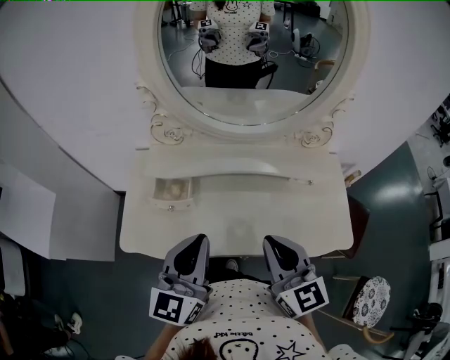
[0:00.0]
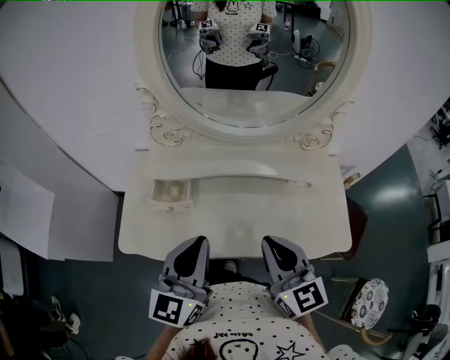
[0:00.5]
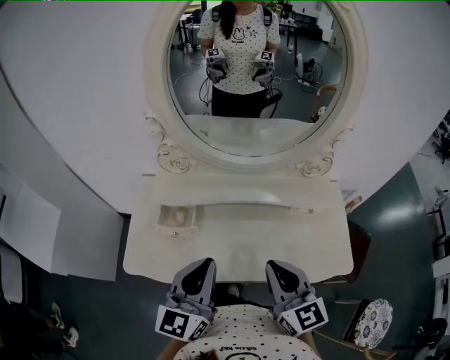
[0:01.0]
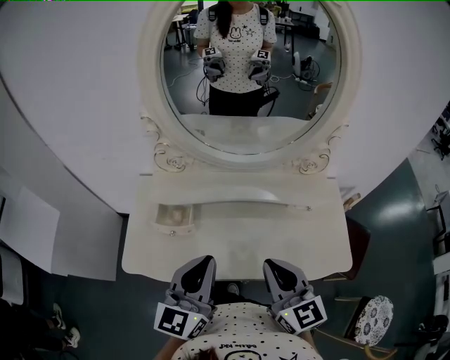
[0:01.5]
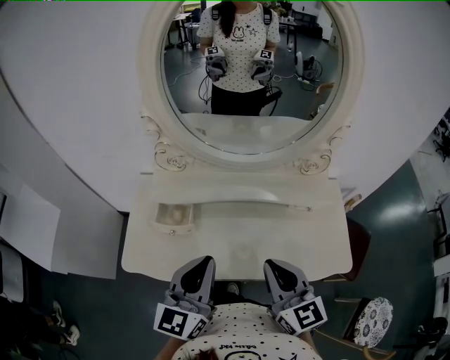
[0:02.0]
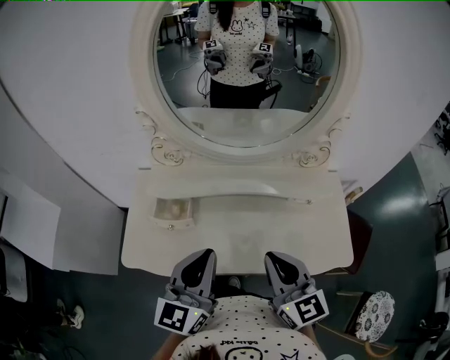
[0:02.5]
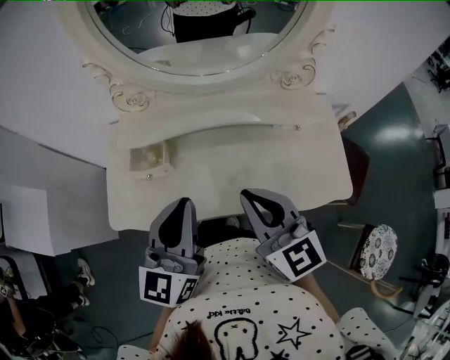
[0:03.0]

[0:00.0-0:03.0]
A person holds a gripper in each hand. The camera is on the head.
0:00.0 to 0:03.0: There are only small adjustments of the grippers.

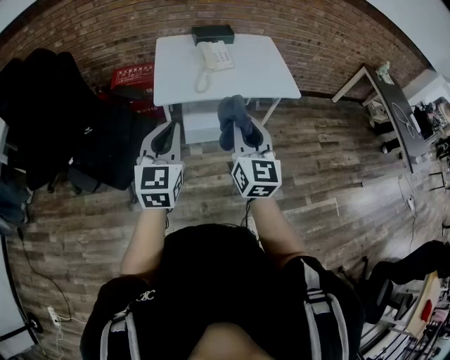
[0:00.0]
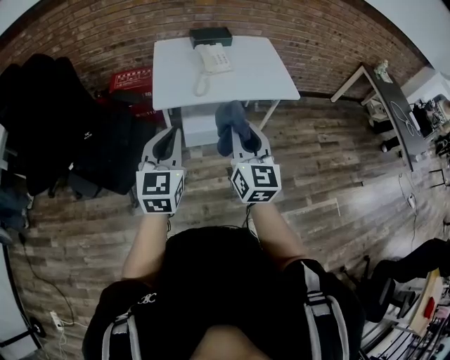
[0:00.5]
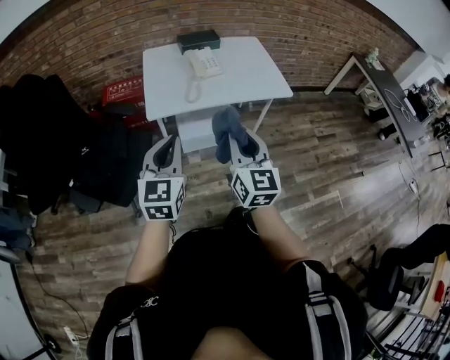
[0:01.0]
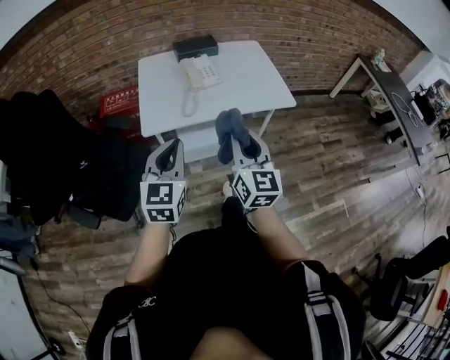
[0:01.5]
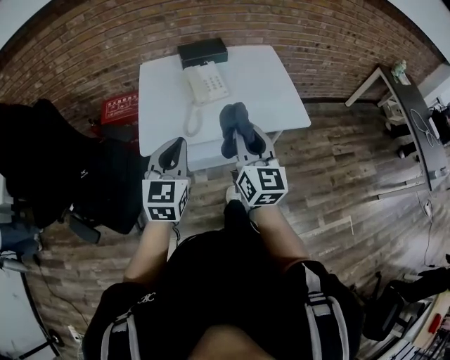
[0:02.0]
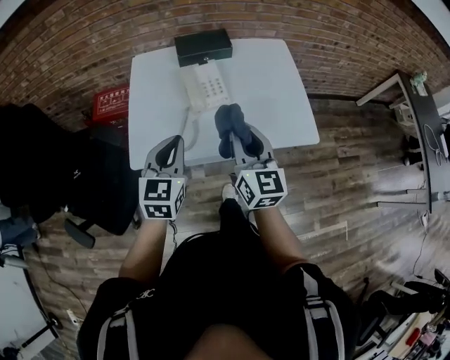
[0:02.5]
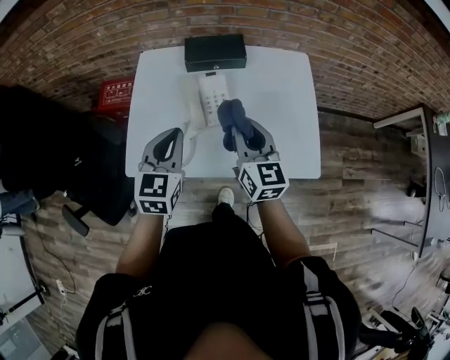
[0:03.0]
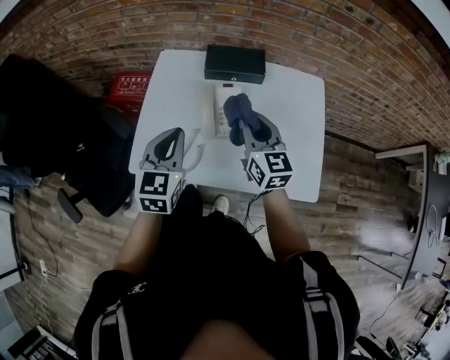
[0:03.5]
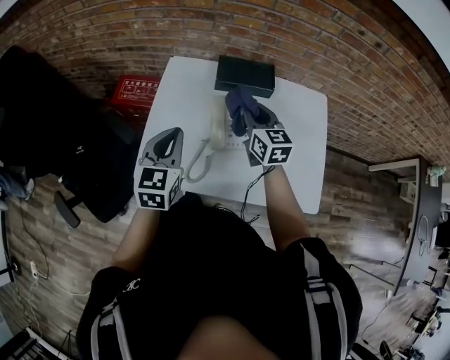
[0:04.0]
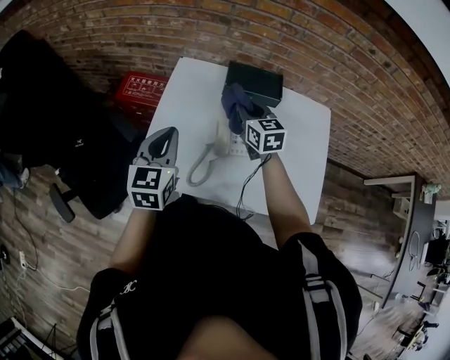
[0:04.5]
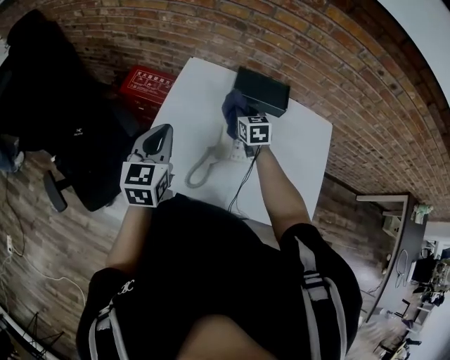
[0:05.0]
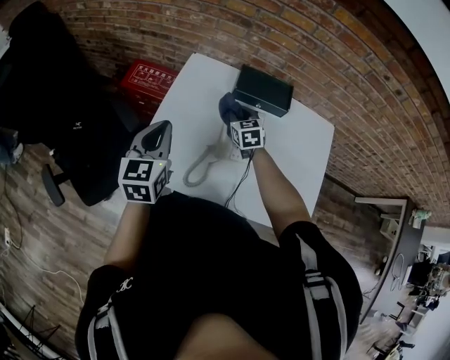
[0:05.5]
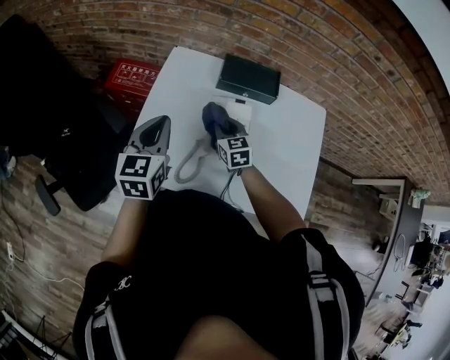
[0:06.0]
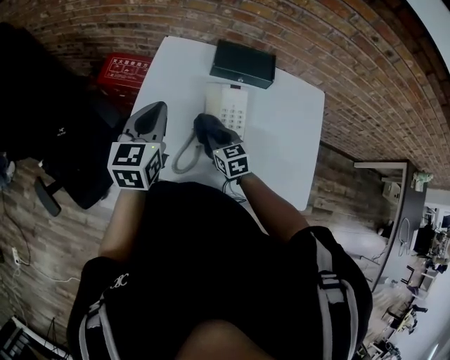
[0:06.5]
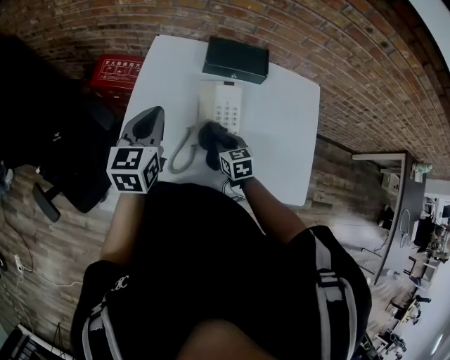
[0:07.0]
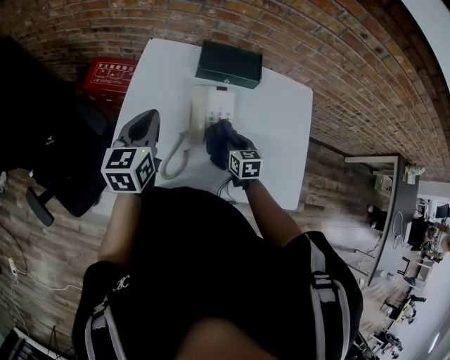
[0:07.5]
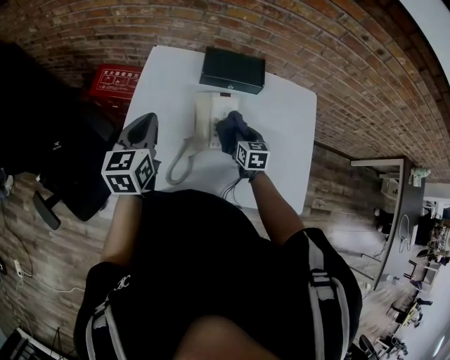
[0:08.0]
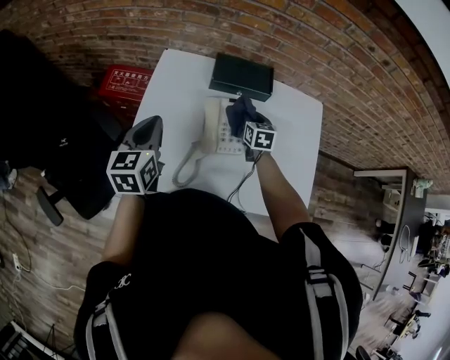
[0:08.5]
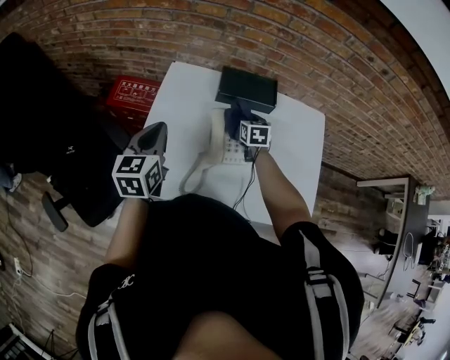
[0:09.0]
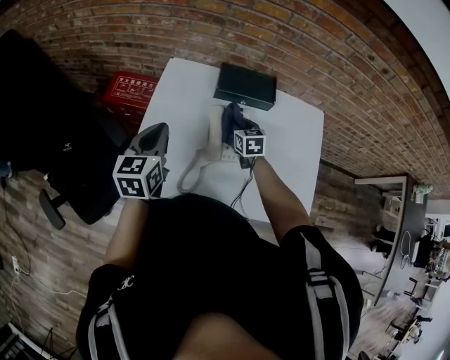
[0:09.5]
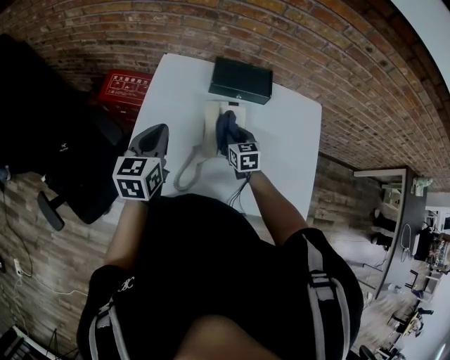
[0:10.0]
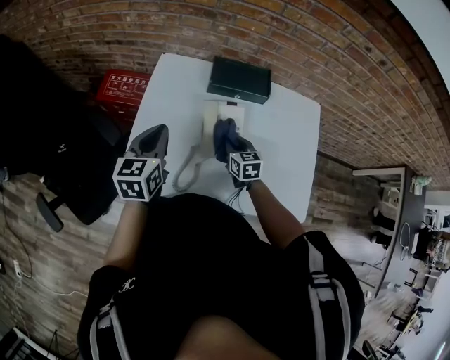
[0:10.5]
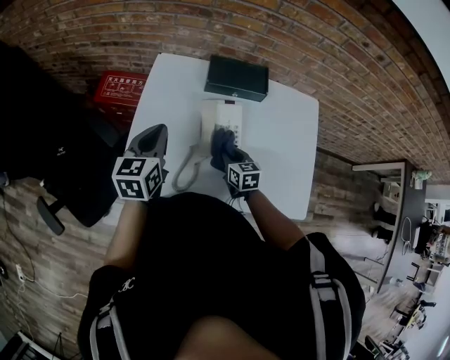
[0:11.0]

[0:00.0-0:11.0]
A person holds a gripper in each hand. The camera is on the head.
0:00.0 to 0:02.0: Both grippers travel together forward, some 25 cm.
0:02.0 to 0:03.5: Both grippers travel together forward, approximately 30 cm. The right gripper rotates roughly 30 degrees.
0:03.5 to 0:05.5: The left gripper is displaced to the left and forward by about 15 cm. The right gripper goes approximately 25 cm forward, downward and to the left, and rotates approximately 30 degrees.
0:05.5 to 0:07.5: The left gripper is displaced to the right by approximately 5 cm; the right gripper goes roughly 20 cm backward, to the right and downward, and turns by some 20 degrees.
0:07.5 to 0:09.0: The right gripper shifts some 15 cm forward.
0:09.0 to 0:11.0: The right gripper shifts about 15 cm backward.

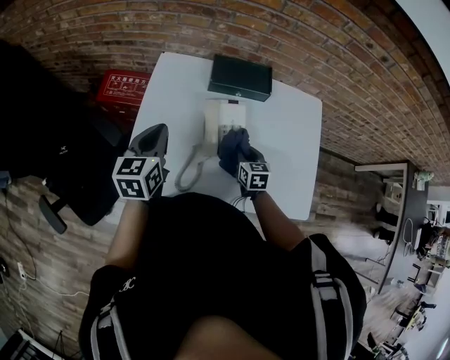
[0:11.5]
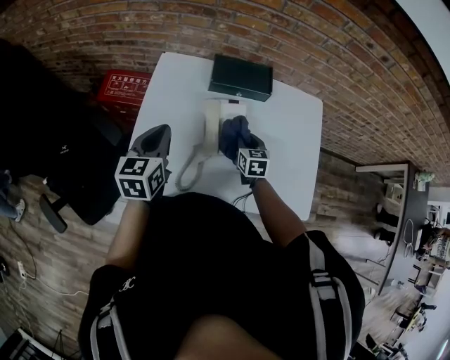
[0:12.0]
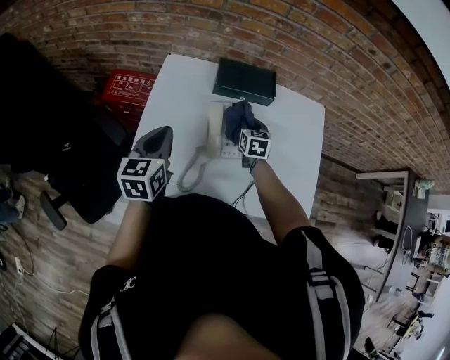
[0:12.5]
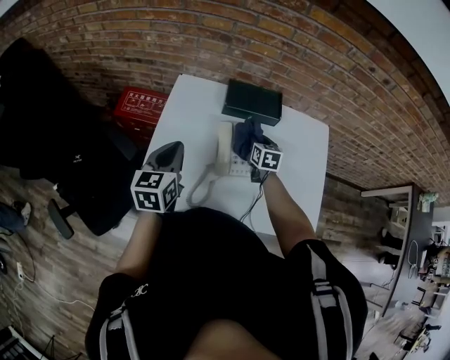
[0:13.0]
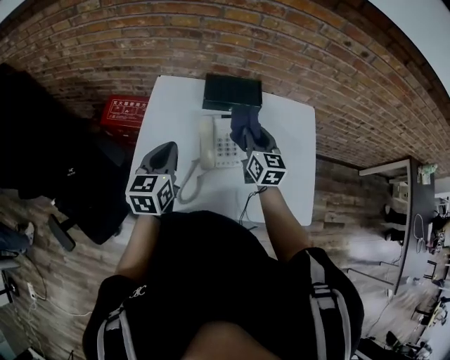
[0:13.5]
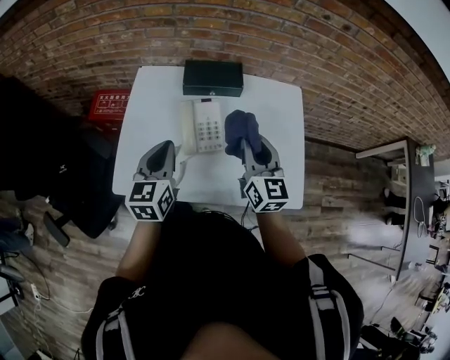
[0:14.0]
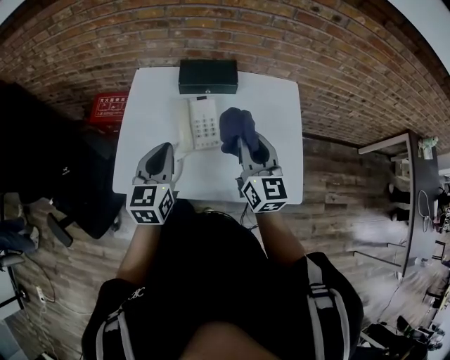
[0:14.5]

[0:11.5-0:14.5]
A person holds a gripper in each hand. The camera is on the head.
0:11.5 to 0:13.0: The right gripper moves forward, roughly 10 cm.
0:13.0 to 0:14.5: The right gripper travels upward and backward by about 30 cm, and tilts its fingers approximately 30 degrees upward; the left gripper is displaced to the right and backward by roughly 15 cm.

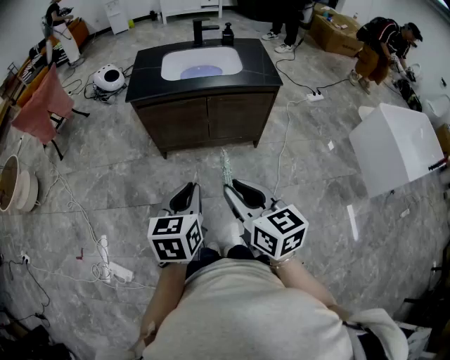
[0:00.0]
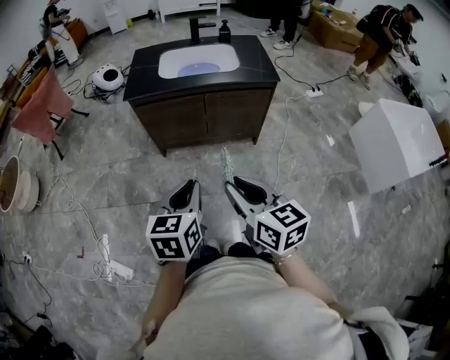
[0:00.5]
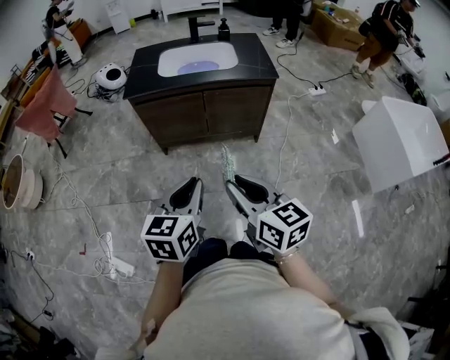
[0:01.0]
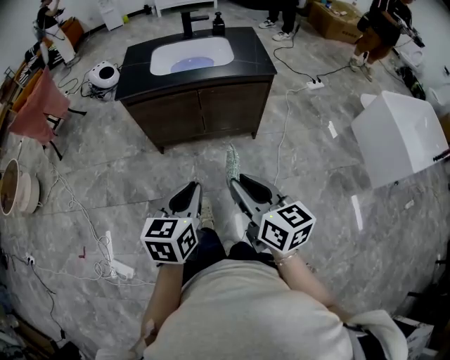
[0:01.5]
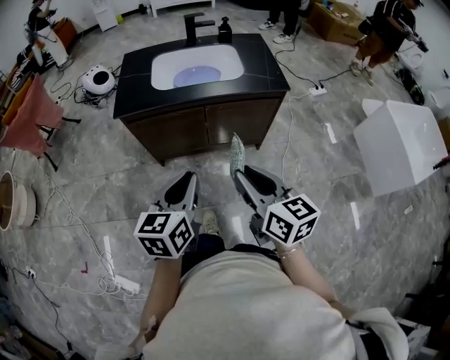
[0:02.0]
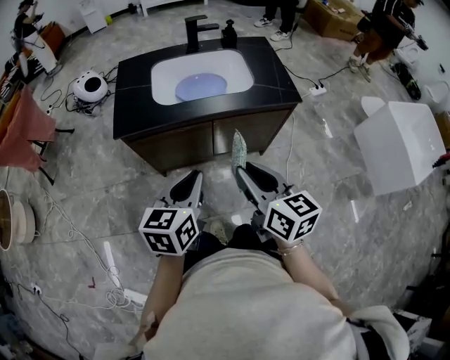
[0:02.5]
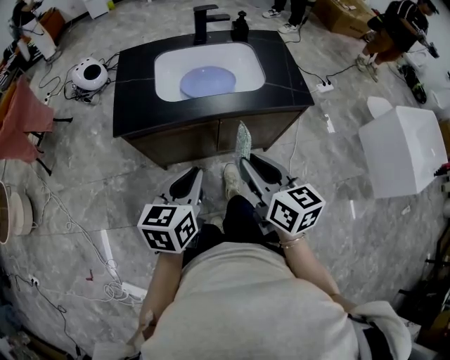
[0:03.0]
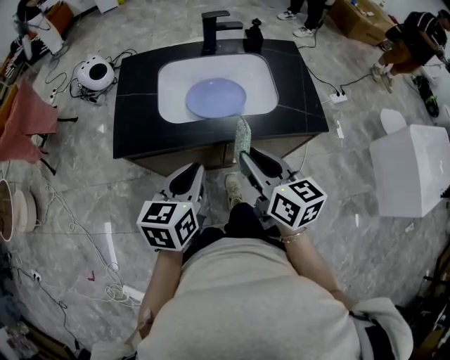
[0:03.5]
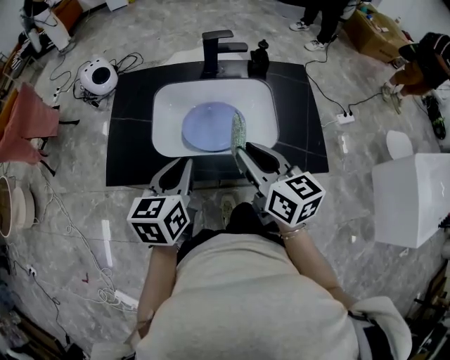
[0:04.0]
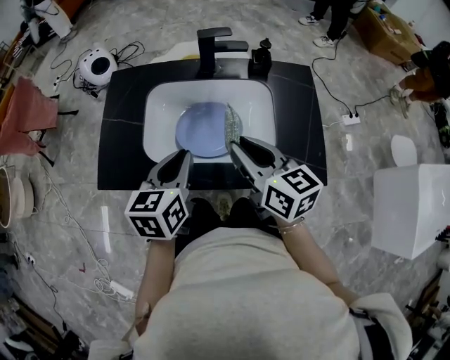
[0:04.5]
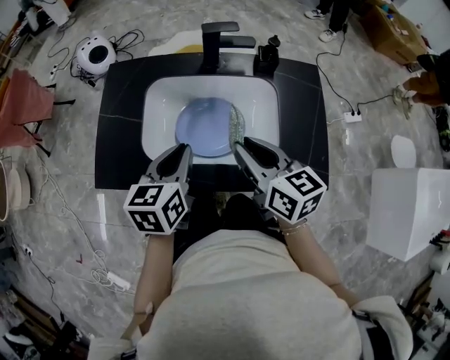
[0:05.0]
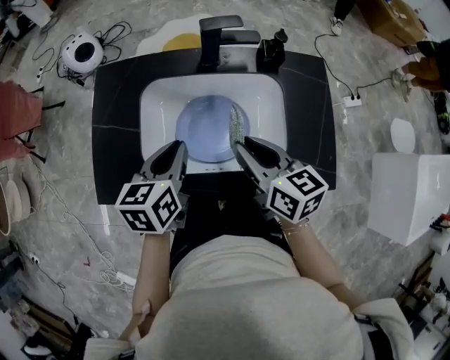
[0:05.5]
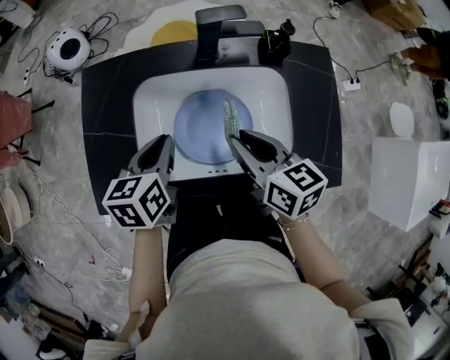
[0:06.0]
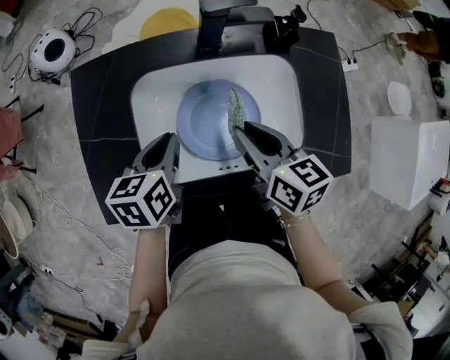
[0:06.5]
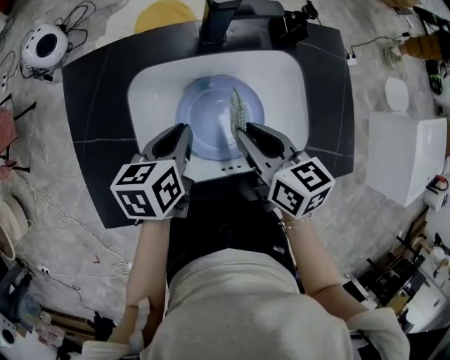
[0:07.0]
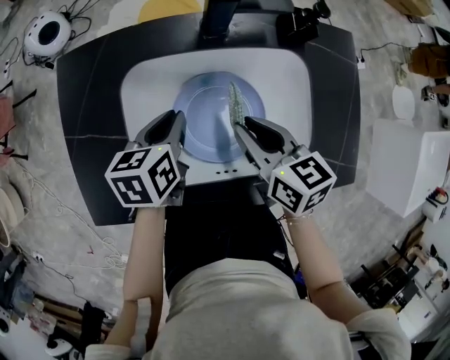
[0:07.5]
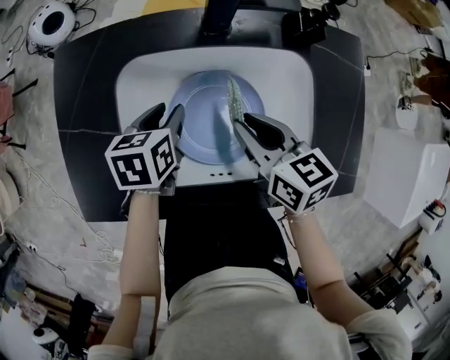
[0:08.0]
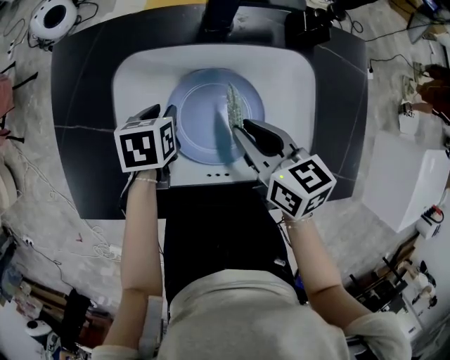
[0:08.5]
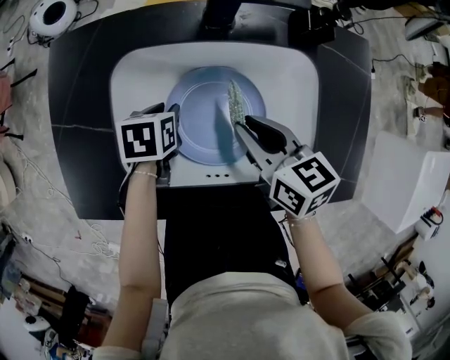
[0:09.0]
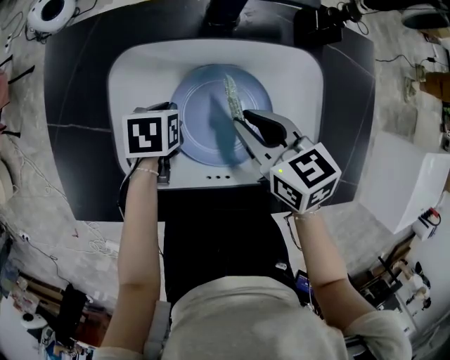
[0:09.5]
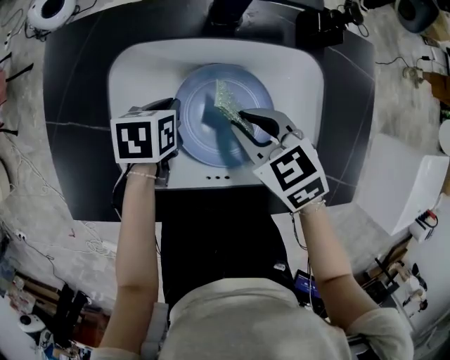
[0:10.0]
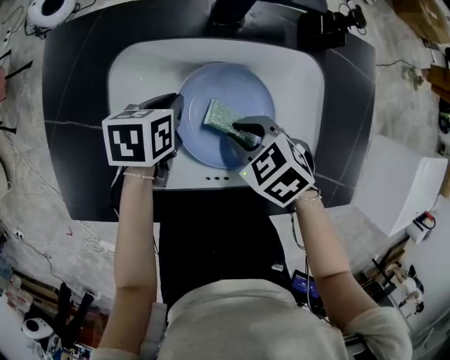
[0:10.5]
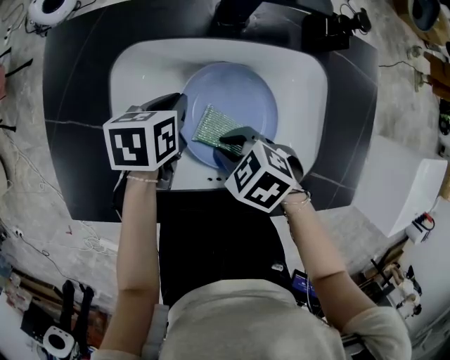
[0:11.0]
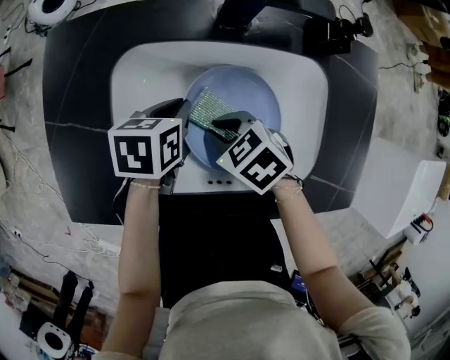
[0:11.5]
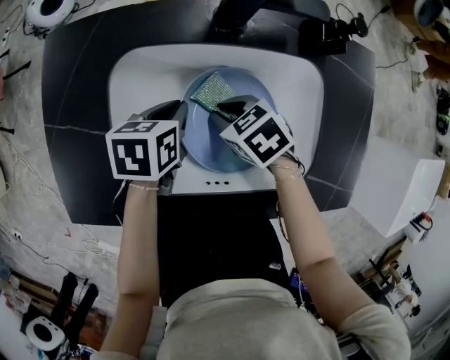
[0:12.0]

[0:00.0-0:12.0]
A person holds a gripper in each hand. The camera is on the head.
0:00.0 to 0:02.0: Both grippers travel together forward, about 15 cm.
0:02.0 to 0:04.0: The grippers both shift forward by some 40 cm.
0:04.0 to 0:06.0: The two grippers go some 15 cm forward and downward.
0:06.0 to 0:08.0: The left gripper is displaced downward and forward by roughly 15 cm, and opens its fingers; the right gripper shifts roughly 10 cm downward.
0:08.0 to 0:10.0: The right gripper rotates roughly 30 degrees, while the left gripper is displaced downward by some 5 cm, and closes its fingers.
0:10.0 to 0:12.0: The right gripper goes some 10 cm downward.
